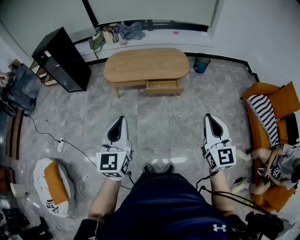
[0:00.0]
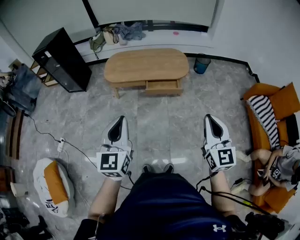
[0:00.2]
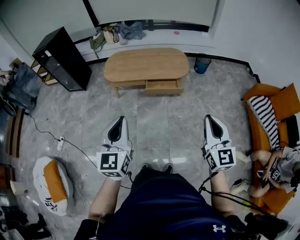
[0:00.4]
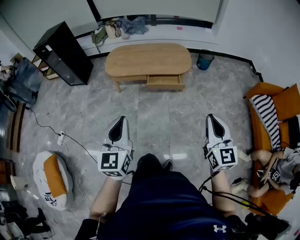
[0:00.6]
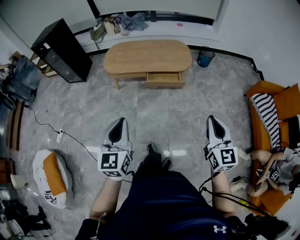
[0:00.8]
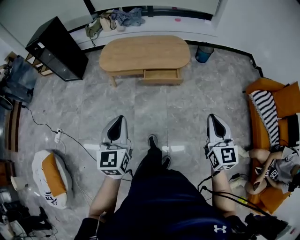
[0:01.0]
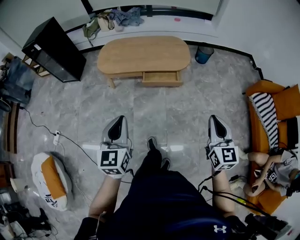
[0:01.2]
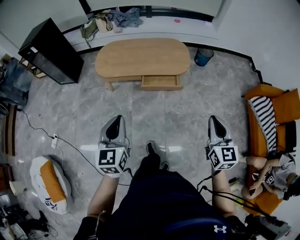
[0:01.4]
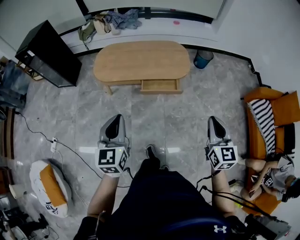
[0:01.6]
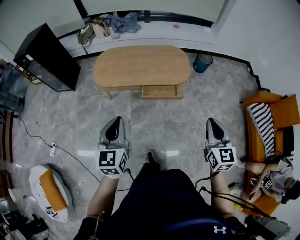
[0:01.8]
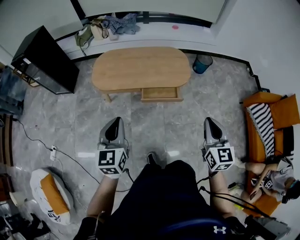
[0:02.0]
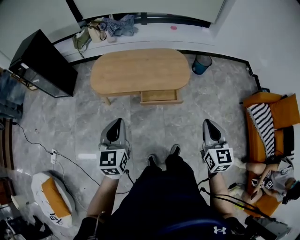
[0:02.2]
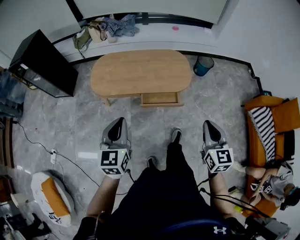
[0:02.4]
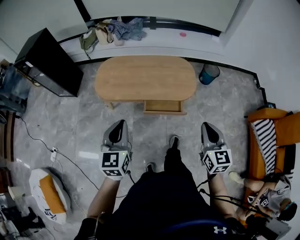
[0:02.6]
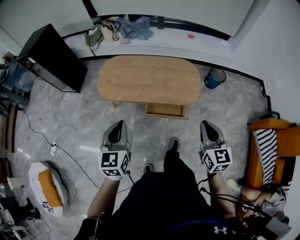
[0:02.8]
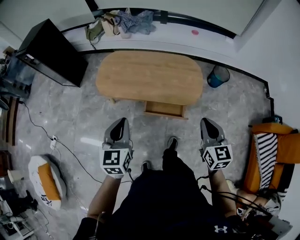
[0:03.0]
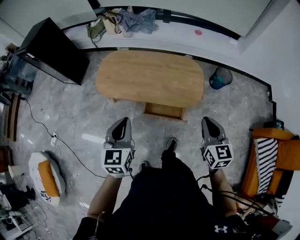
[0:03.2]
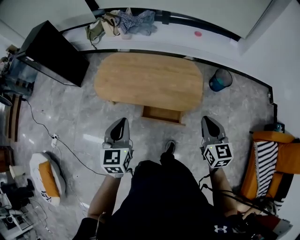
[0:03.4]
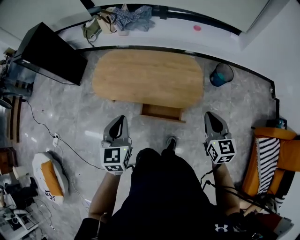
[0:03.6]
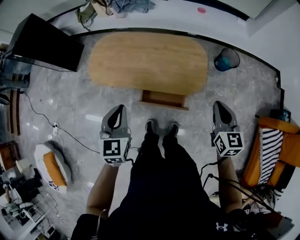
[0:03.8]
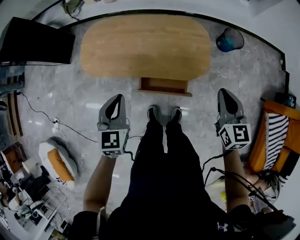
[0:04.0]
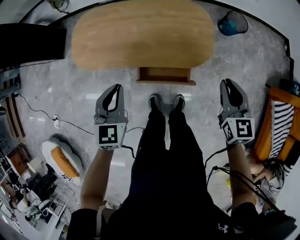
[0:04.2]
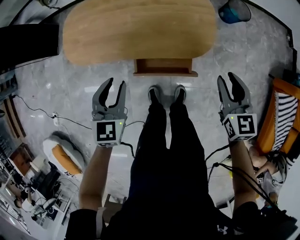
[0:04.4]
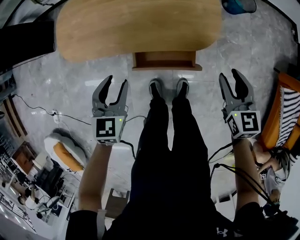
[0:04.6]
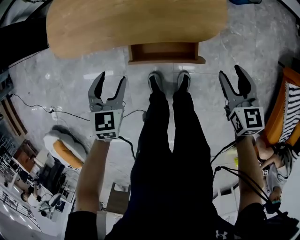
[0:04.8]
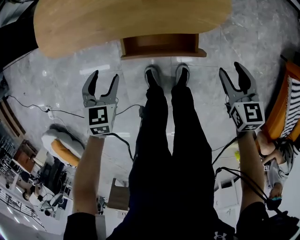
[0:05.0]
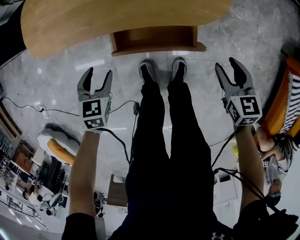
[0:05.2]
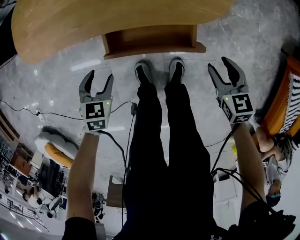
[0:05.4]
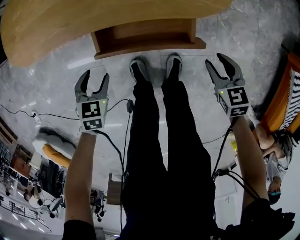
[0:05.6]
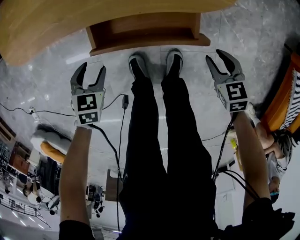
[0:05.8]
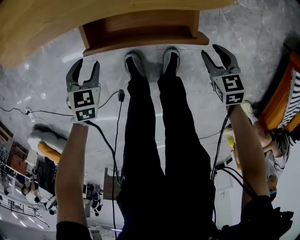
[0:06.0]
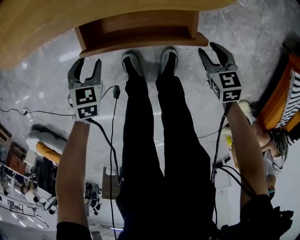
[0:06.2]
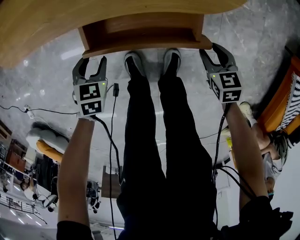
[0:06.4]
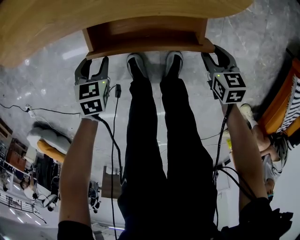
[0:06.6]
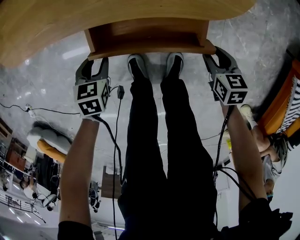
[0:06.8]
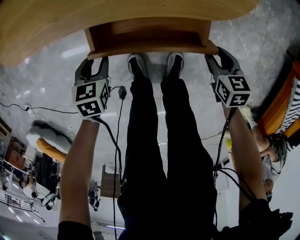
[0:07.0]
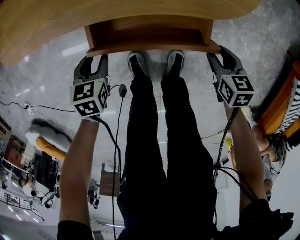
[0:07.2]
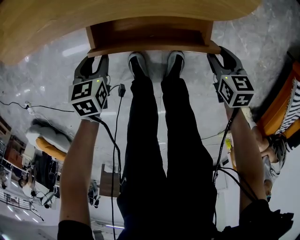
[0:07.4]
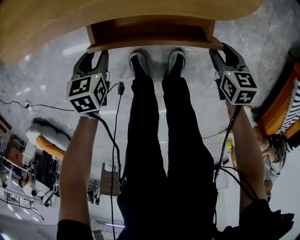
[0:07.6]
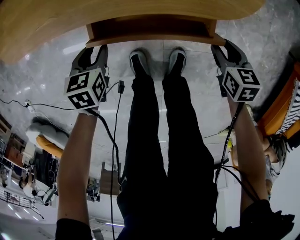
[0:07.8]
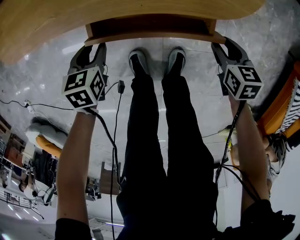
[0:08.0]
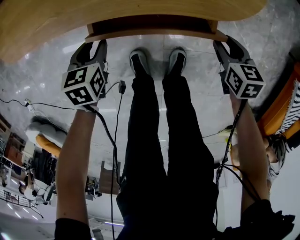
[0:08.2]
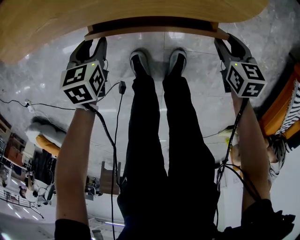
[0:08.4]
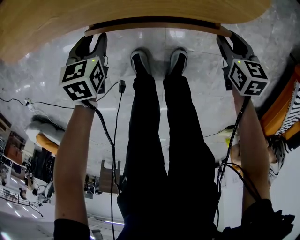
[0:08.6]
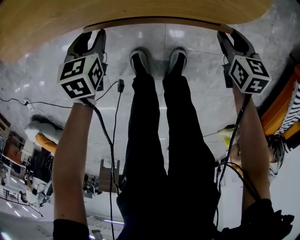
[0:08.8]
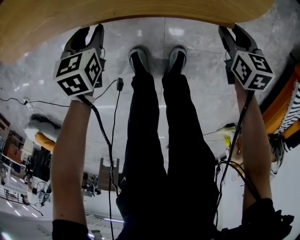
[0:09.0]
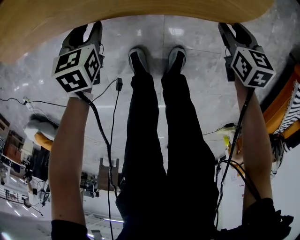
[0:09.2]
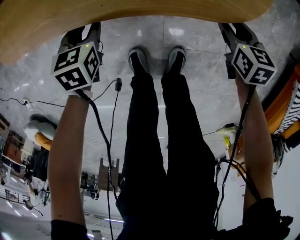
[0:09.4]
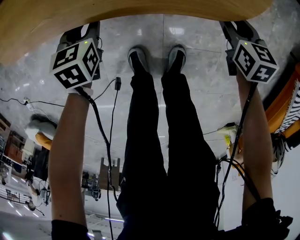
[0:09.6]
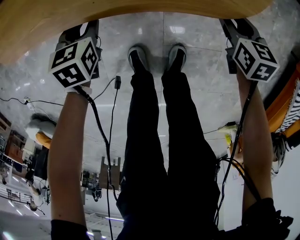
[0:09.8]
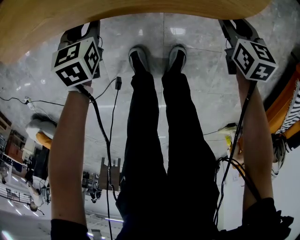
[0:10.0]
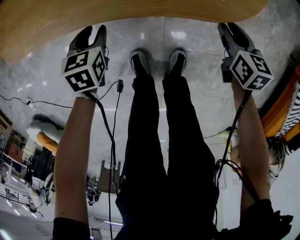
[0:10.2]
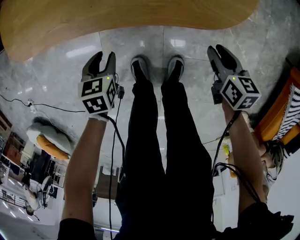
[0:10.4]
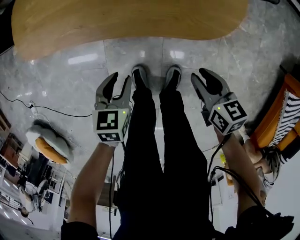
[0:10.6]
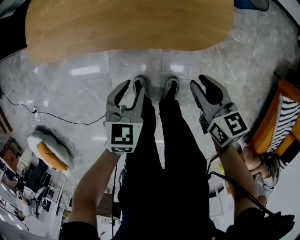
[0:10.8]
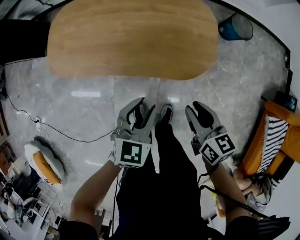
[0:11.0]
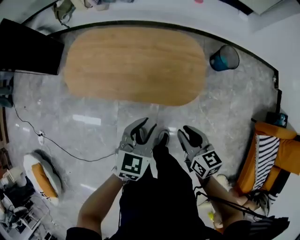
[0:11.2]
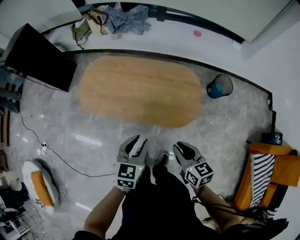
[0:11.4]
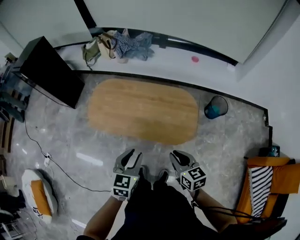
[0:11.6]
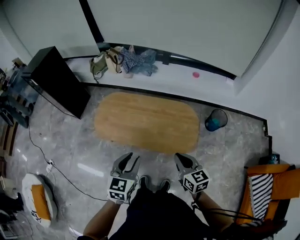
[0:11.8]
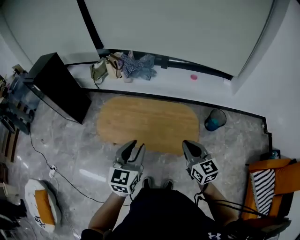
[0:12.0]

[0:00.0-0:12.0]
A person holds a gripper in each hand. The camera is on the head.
0:00.0 to 0:01.6: Both grippers move forward and downward, approximately 20 cm.
0:01.6 to 0:03.0: The two grippers go roughly 25 cm forward.
0:03.0 to 0:04.4: The left gripper heads downward and forward, covering about 25 cm, changes its angle by about 20 degrees, and opens its fingers; the right gripper is displaced downward, forward and to the right by approximately 25 cm, and opens its fingers.
0:04.4 to 0:06.0: The two grippers go about 40 cm downward. The left gripper tips its fingers downward by about 30 degrees, while the right gripper changes its angle by roughly 30 degrees.
0:06.0 to 0:07.6: The left gripper changes its angle by about 20 degrees.
0:07.6 to 0:09.0: The two grippers go about 10 cm forward.
0:09.0 to 0:10.4: The right gripper moves roughly 5 cm, while the left gripper shifts some 5 cm backward.
0:10.4 to 0:12.0: Both grippers move upward, approximately 70 cm. The right gripper tips its fingers upward by roughly 40 degrees, and closes; the left gripper tilts its fingers about 50 degrees upward.

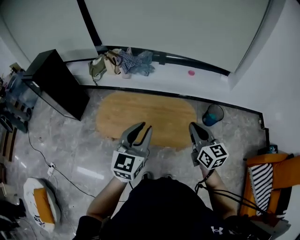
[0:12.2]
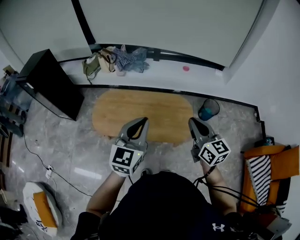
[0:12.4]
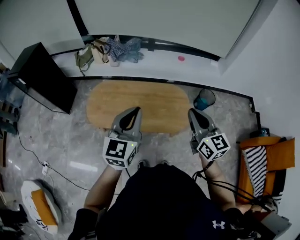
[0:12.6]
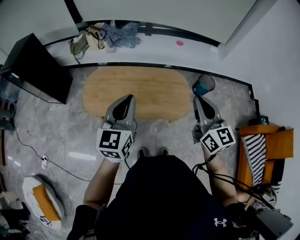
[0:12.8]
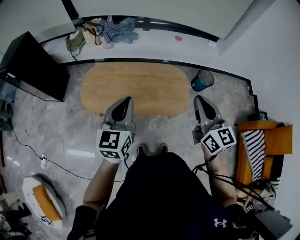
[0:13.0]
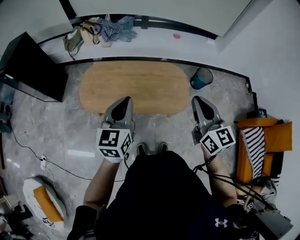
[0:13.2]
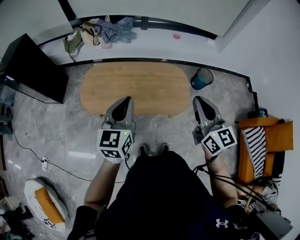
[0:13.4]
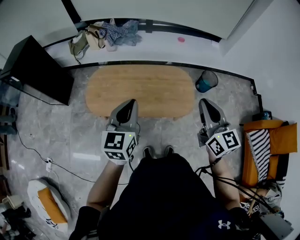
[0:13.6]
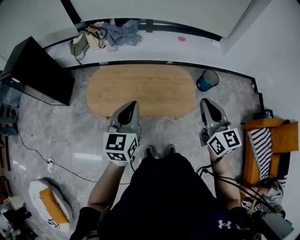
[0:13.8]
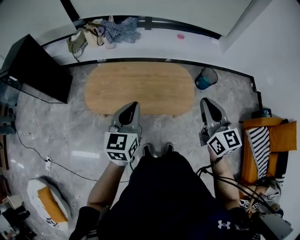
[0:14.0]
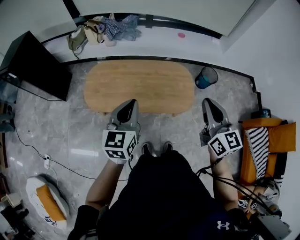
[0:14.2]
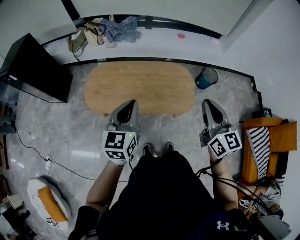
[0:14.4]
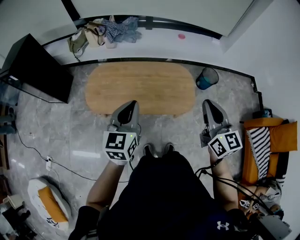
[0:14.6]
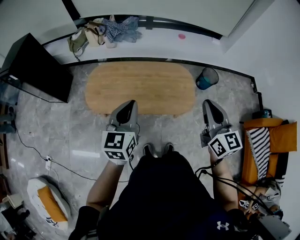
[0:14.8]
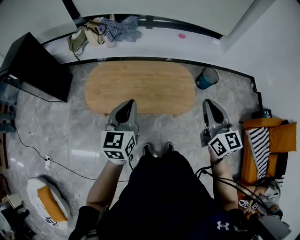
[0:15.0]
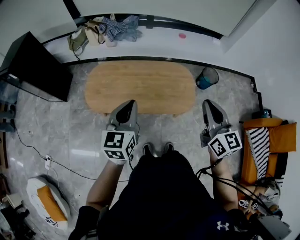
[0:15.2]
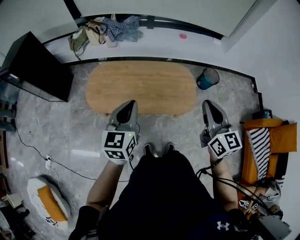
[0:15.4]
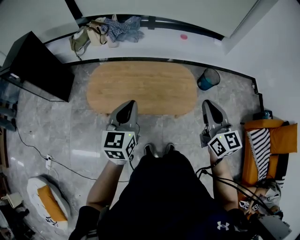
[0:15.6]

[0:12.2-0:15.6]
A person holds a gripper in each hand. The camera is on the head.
0:12.2 to 0:13.8: The left gripper is displaced to the left and downward by roughly 10 cm, and closes its fingers. Meanwhile the right gripper moves some 5 cm.
0:13.8 to 0:15.6: The grippers make only small movements.

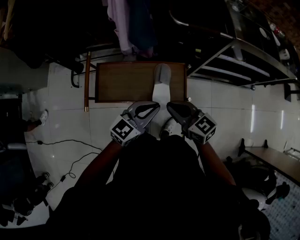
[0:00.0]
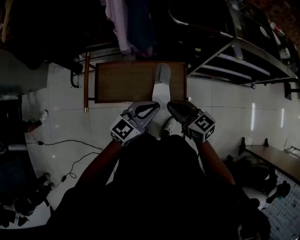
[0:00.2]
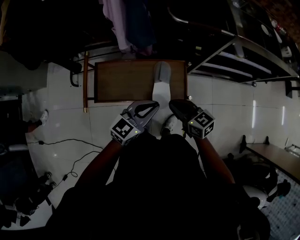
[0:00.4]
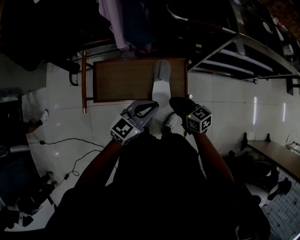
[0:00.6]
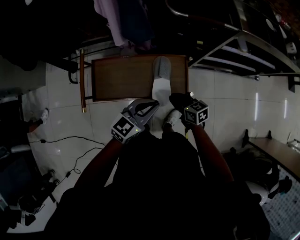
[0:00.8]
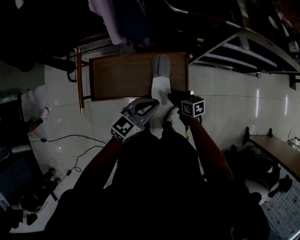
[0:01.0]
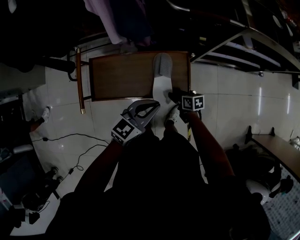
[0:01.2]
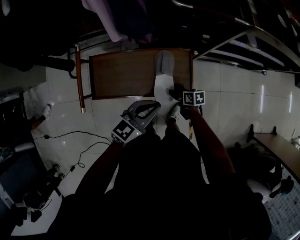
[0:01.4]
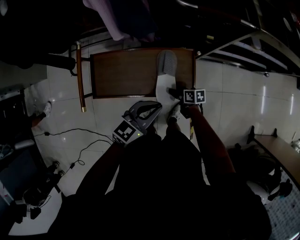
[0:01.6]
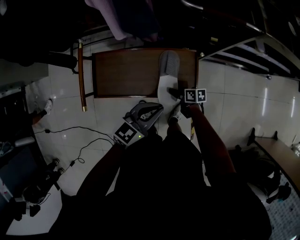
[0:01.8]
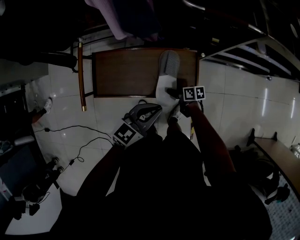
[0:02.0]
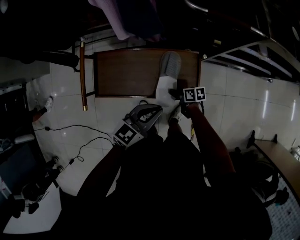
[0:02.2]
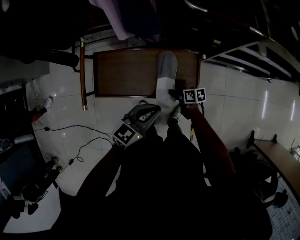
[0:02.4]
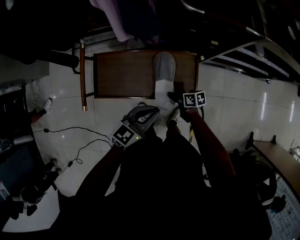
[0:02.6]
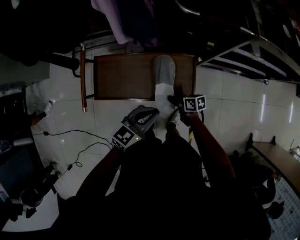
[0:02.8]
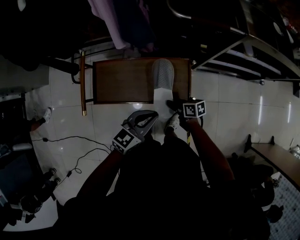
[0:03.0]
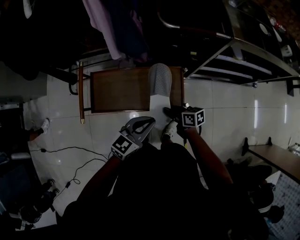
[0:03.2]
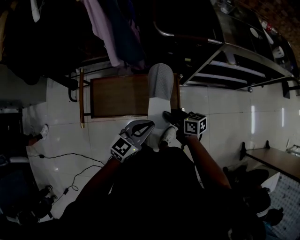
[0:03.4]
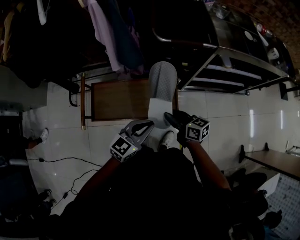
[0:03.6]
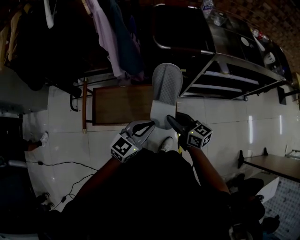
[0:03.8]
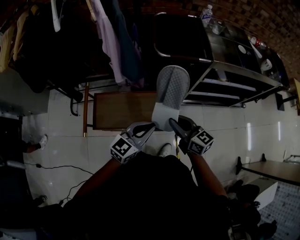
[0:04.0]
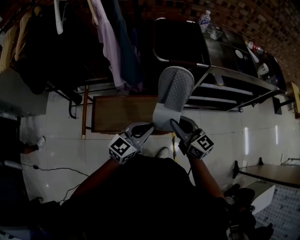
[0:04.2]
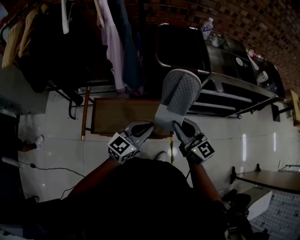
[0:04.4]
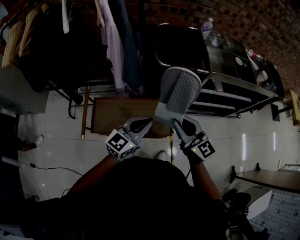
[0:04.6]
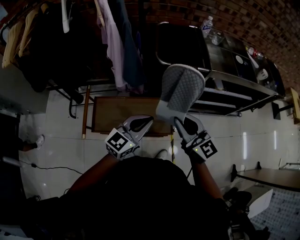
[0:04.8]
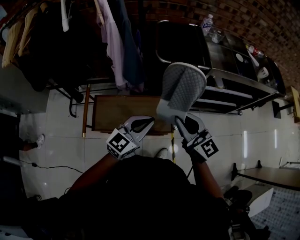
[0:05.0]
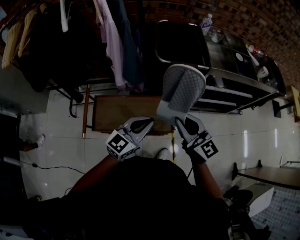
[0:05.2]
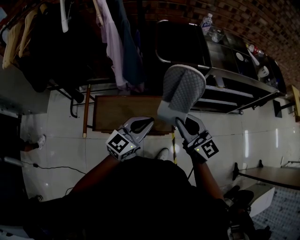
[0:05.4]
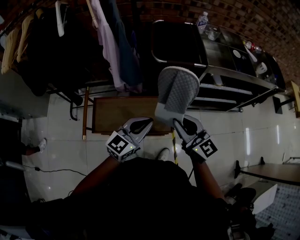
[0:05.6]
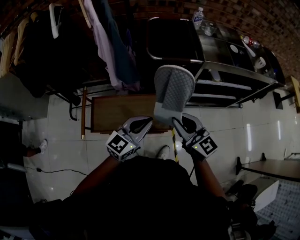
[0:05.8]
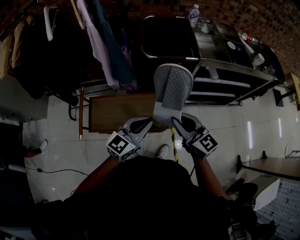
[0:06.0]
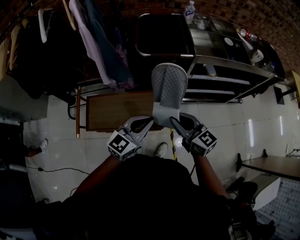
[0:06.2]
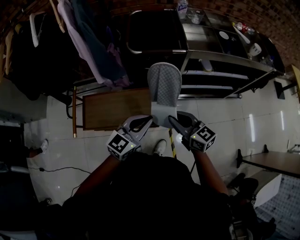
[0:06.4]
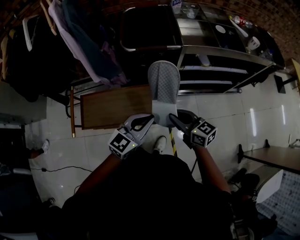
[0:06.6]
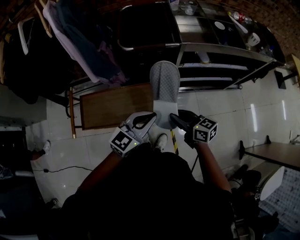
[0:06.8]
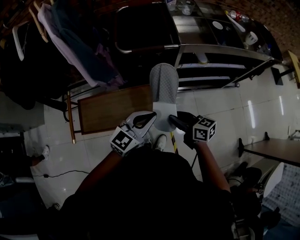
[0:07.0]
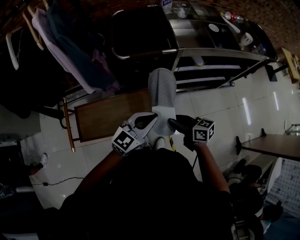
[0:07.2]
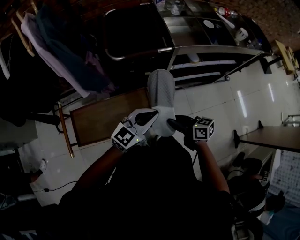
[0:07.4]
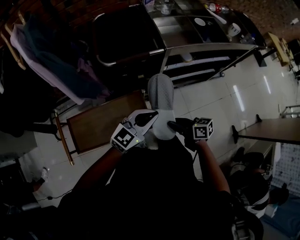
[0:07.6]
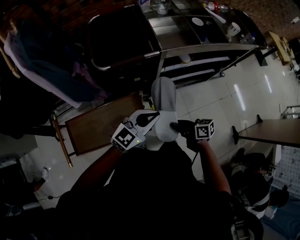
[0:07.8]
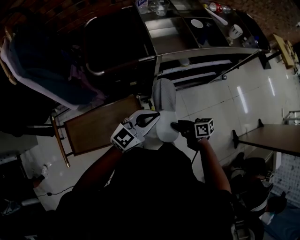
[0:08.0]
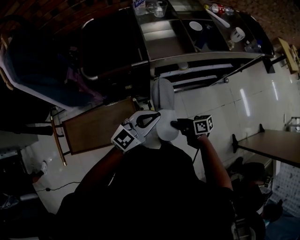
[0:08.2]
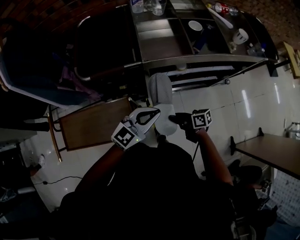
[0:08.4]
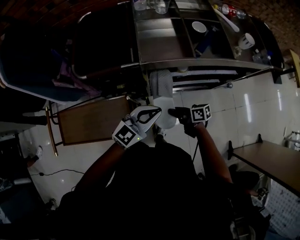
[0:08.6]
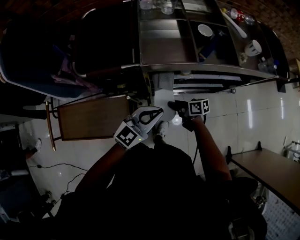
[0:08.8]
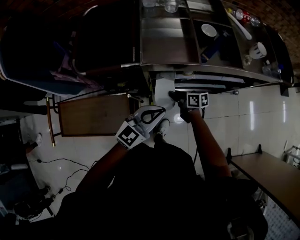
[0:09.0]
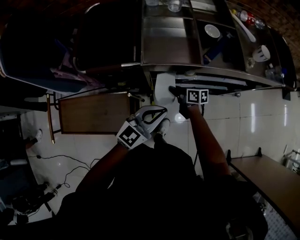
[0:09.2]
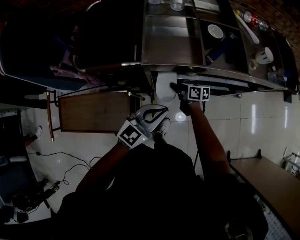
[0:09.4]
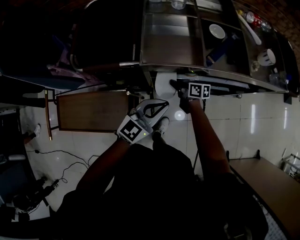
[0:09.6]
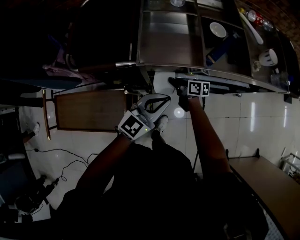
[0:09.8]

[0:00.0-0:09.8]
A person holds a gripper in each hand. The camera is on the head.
0:00.0 to 0:01.4: The left gripper is displaced downward by some 10 cm. Meanwhile the right gripper travels downward by some 35 cm, rotates around the line of its fingers by roughly 40 degrees, clockwise from behind, and opens.
0:01.4 to 0:02.8: The right gripper changes place by some 5 cm, and closes.
0:02.8 to 0:04.2: The left gripper goes about 15 cm upward, while the right gripper travels upward by some 40 cm, and swivels roughly 60 degrees.
0:04.2 to 0:05.6: The right gripper heads upward, covering approximately 5 cm.
0:05.6 to 0:07.0: The left gripper is displaced to the right by some 15 cm. Meanwhile the right gripper moves downward and to the right, about 20 cm, and changes its angle by approximately 40 degrees.
0:07.0 to 0:08.4: The left gripper moves some 20 cm; the right gripper ends up approximately 25 cm from where it was, and changes its angle by about 30 degrees.
0:08.4 to 0:09.8: The left gripper shifts by some 15 cm. The right gripper ends up about 25 cm from where it was.
